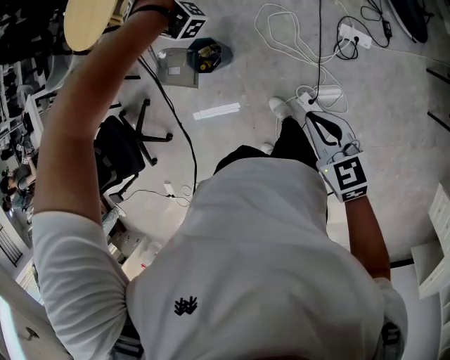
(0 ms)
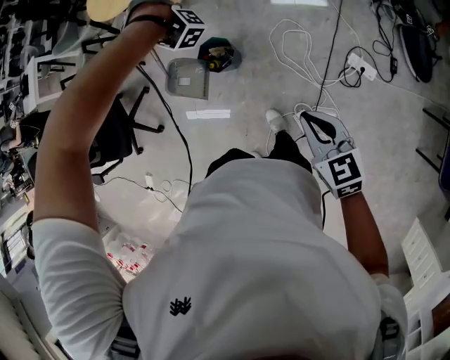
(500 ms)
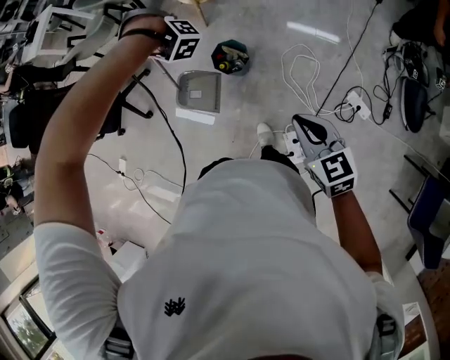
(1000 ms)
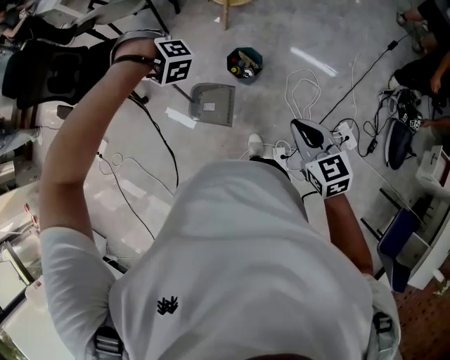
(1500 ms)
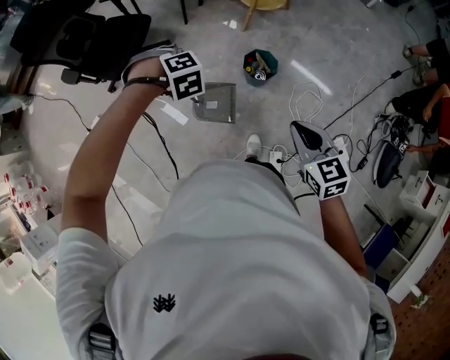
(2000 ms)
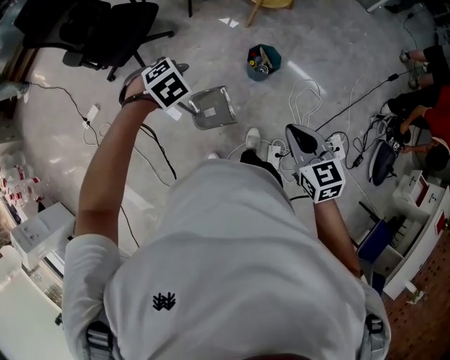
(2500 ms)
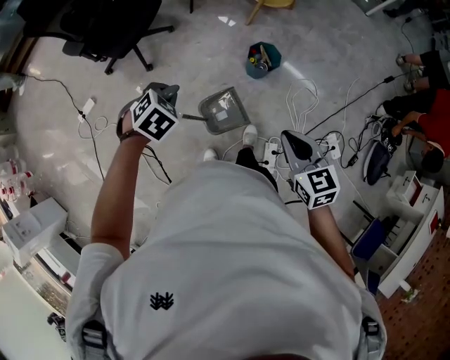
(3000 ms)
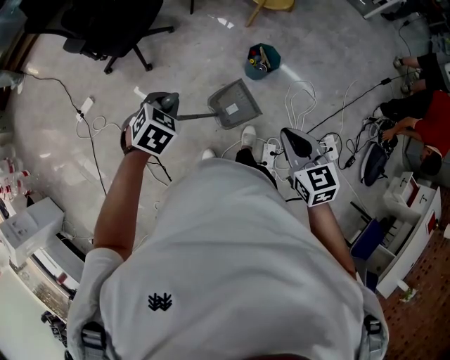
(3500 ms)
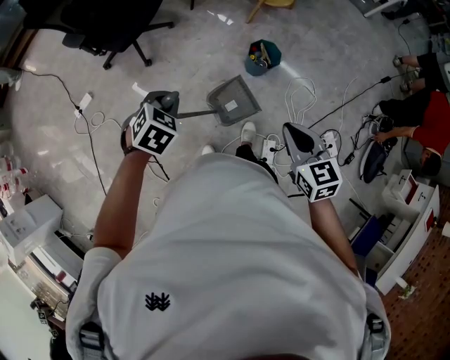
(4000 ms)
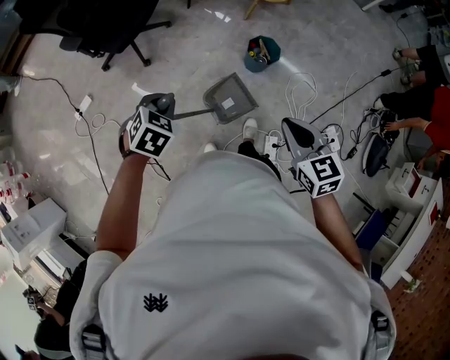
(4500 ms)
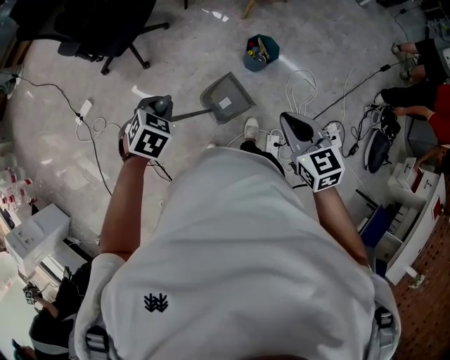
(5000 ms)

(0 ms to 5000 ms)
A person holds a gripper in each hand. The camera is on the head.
0 ms - 2500 ms: The right gripper ends up some 30 cm from where it was, and changes its angle by roughly 40 degrees.
2500 ms - 5000 ms: The right gripper ends up roughly 5 cm from where it was.

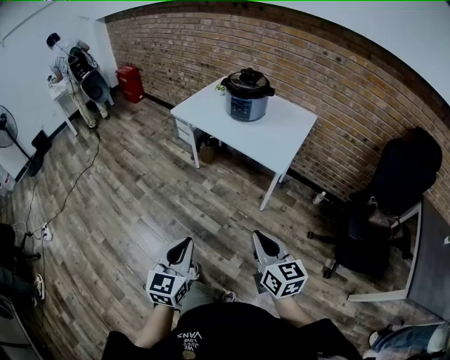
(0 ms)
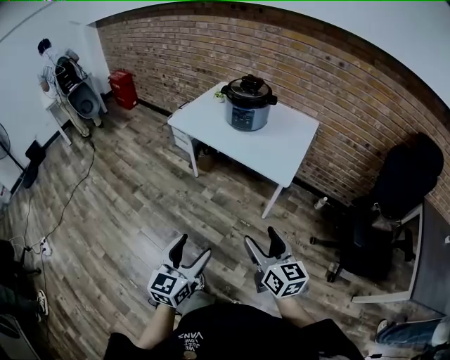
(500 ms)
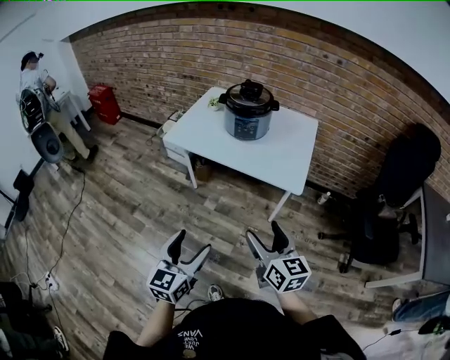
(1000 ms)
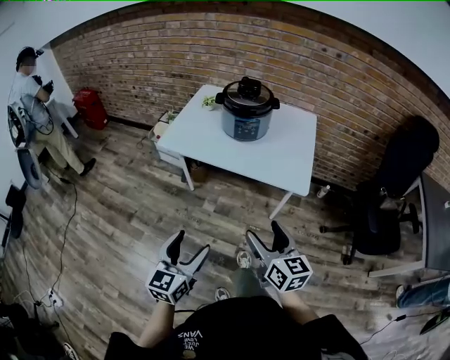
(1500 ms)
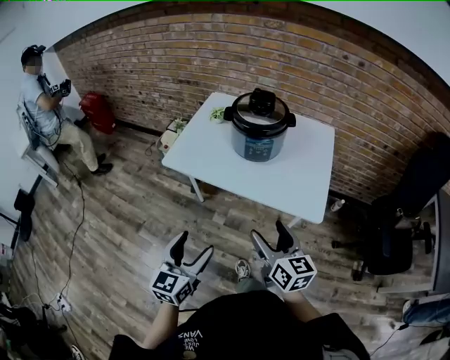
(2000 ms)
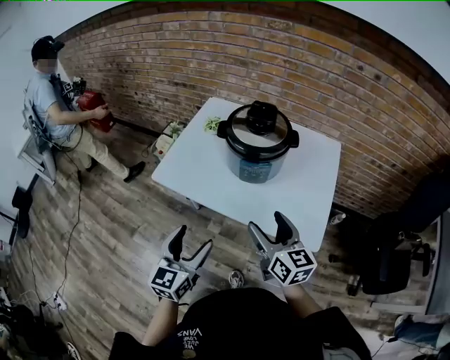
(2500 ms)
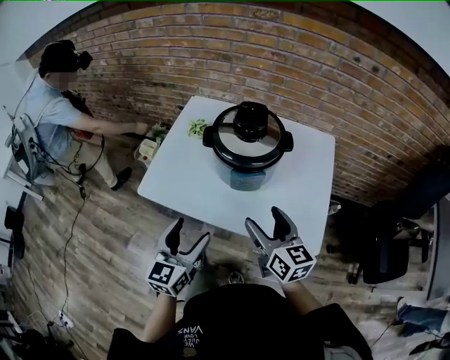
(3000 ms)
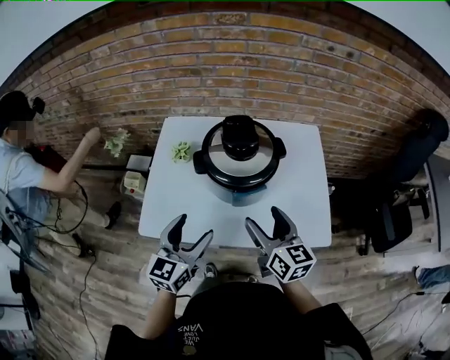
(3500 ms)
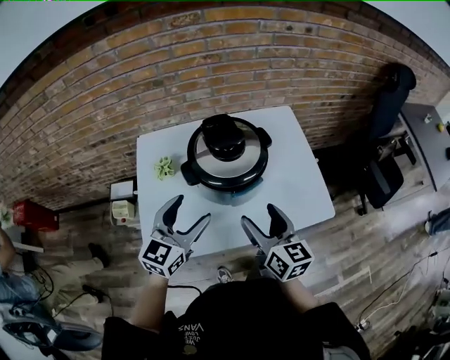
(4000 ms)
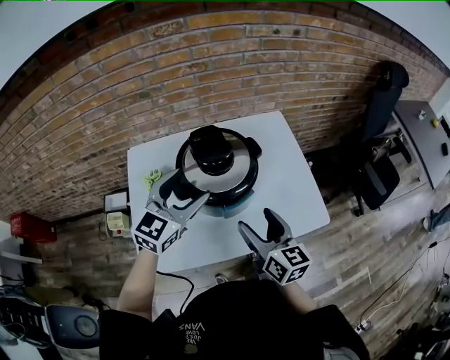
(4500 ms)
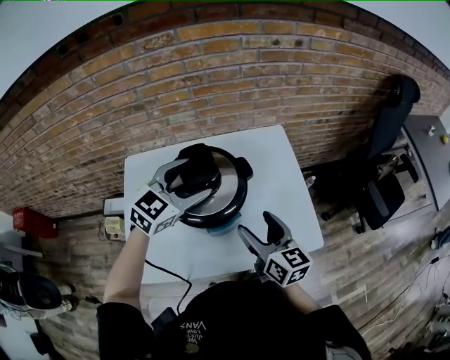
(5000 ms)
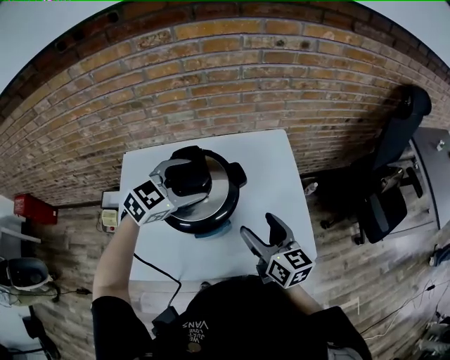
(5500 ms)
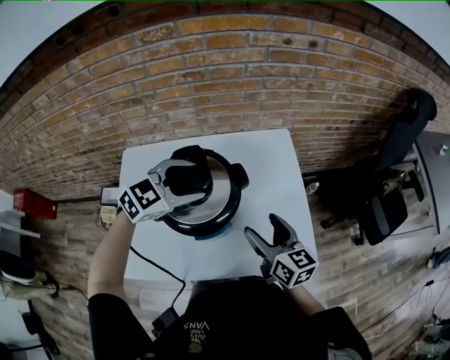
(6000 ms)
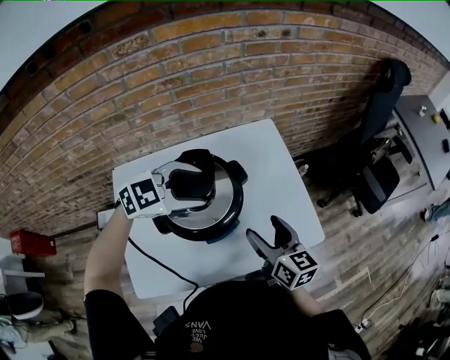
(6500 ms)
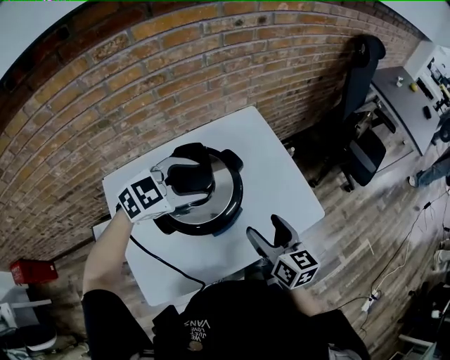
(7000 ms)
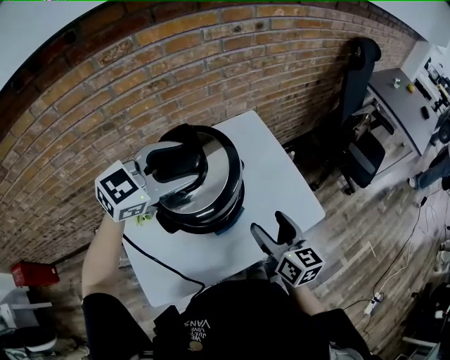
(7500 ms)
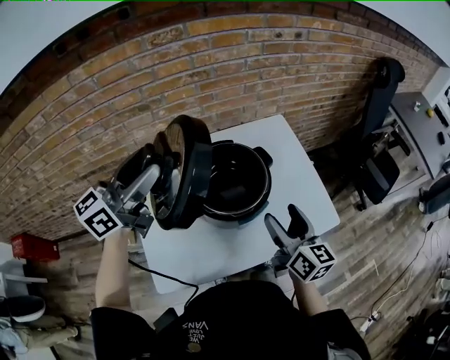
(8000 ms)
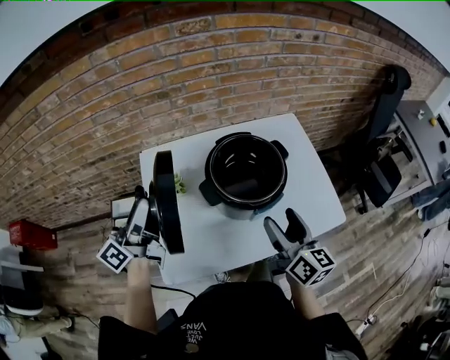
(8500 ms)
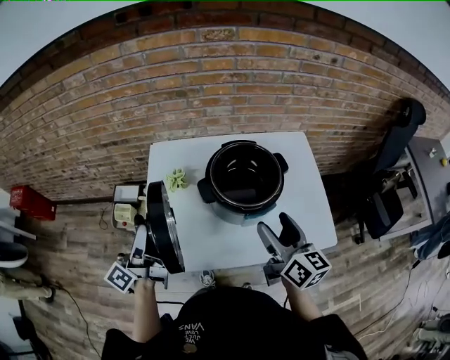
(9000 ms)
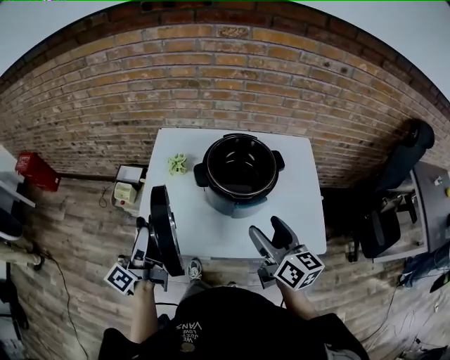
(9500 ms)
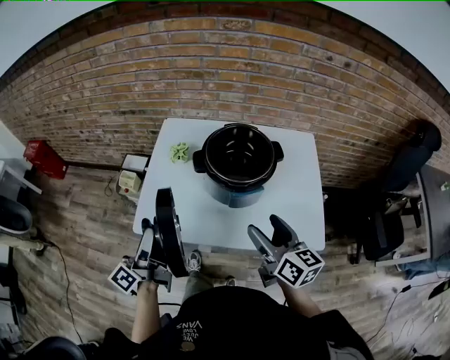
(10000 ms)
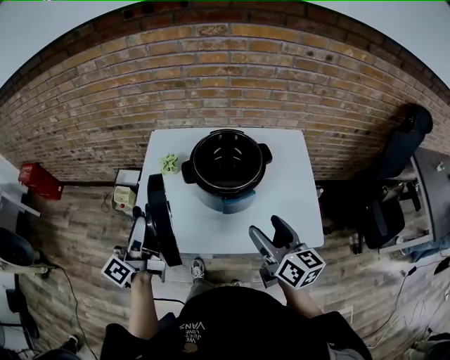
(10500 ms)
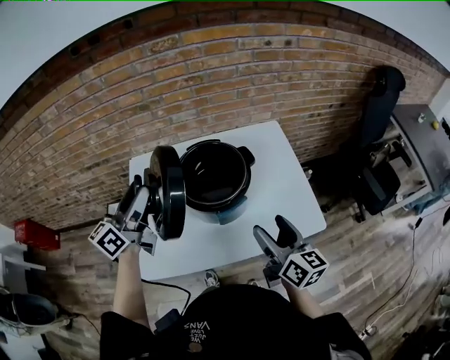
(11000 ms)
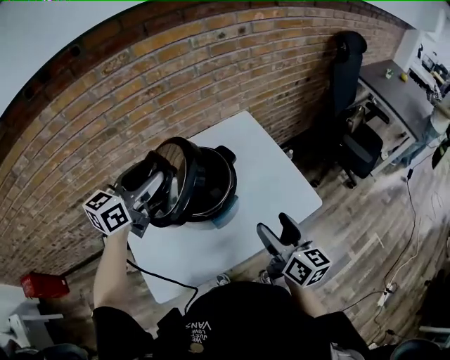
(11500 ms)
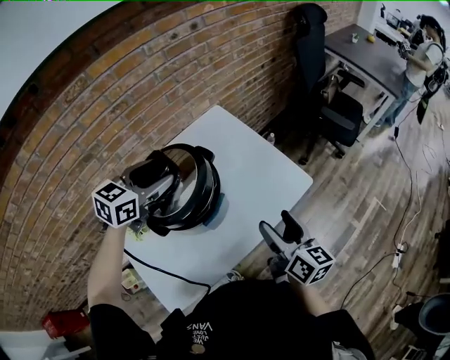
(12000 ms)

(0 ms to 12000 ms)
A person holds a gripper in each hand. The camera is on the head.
0 ms - 2000 ms: The two grippers go roughly 40 cm forward and to the left. The left gripper opens up. Meanwhile the right gripper opens.
2000 ms - 4000 ms: The right gripper changes place by some 25 cm, and changes its angle by about 30 degrees. Meanwhile the left gripper ends up approximately 40 cm from where it was, and rotates approximately 40 degrees.
4000 ms - 6000 ms: Both grippers travel together forward and to the right, roughly 20 cm. The left gripper turns by some 40 degrees.
6000 ms - 8000 ms: The right gripper travels backward and upward by roughly 10 cm, and swivels some 20 degrees, while the left gripper is displaced to the left, upward and backward by some 25 cm, and tilts its fingers approximately 40 degrees upward.
8000 ms - 10000 ms: The left gripper moves roughly 35 cm, and turns by some 60 degrees, while the right gripper moves about 5 cm, and turns by about 30 degrees.
10000 ms - 12000 ms: The left gripper moves about 40 cm, and points its fingers about 40 degrees further downward; the right gripper changes place by approximately 10 cm, and turns by approximately 50 degrees.

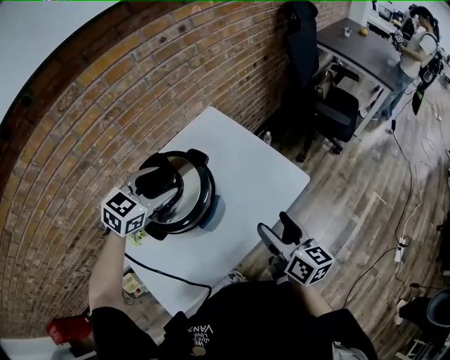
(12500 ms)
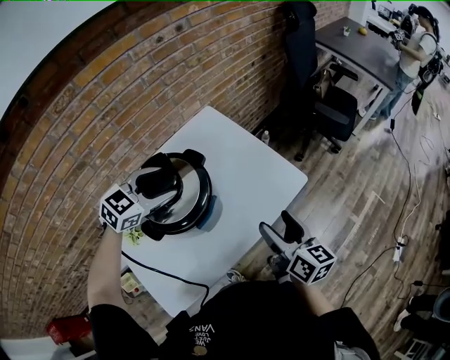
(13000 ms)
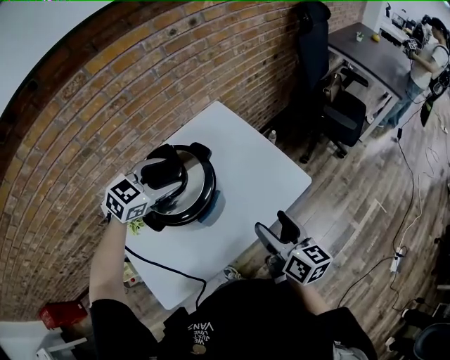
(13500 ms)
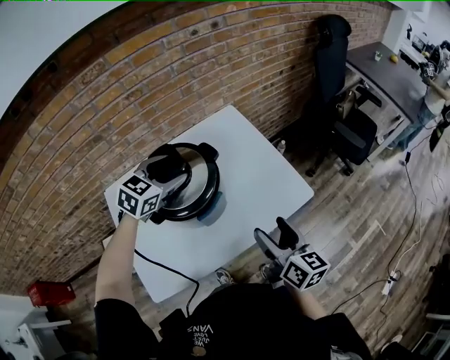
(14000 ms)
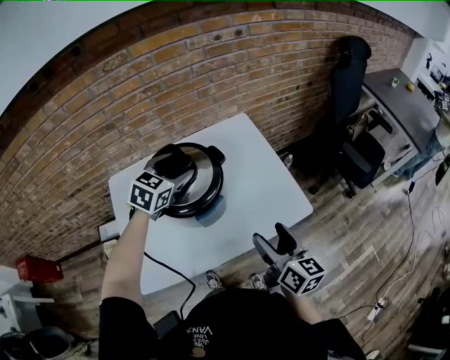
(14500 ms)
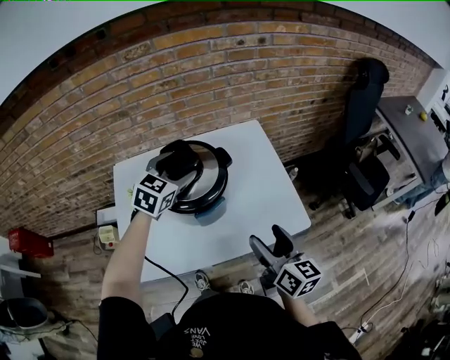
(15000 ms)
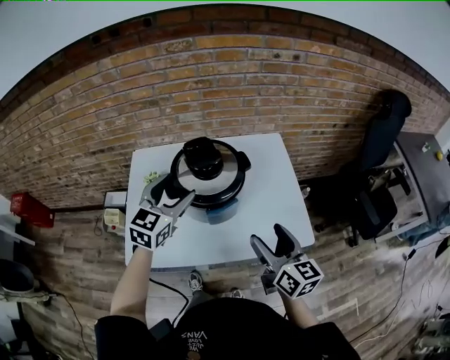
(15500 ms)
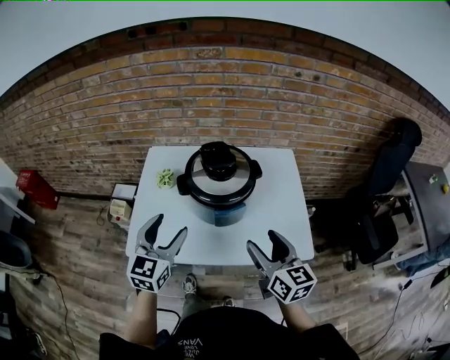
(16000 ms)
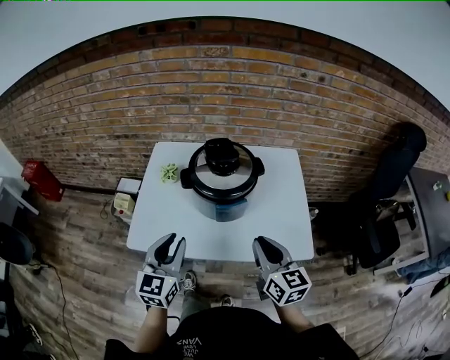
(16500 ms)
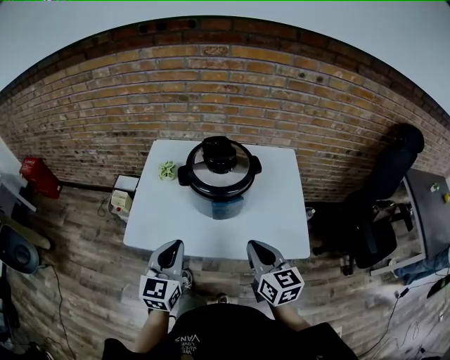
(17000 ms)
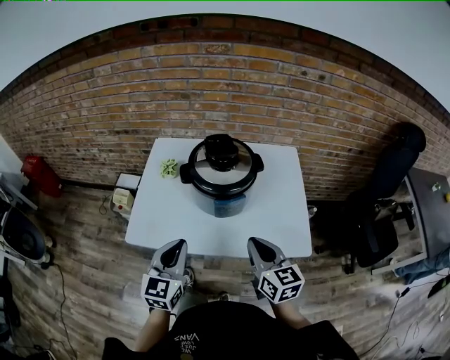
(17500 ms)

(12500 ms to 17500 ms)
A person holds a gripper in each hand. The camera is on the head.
12500 ms - 15000 ms: The right gripper swivels approximately 30 degrees. Meanwhile the left gripper swivels roughly 40 degrees.
15000 ms - 17500 ms: The left gripper changes place by about 30 cm, rotates roughly 40 degrees, and closes. The right gripper moves approximately 5 cm, changes its angle by about 30 degrees, and closes up.

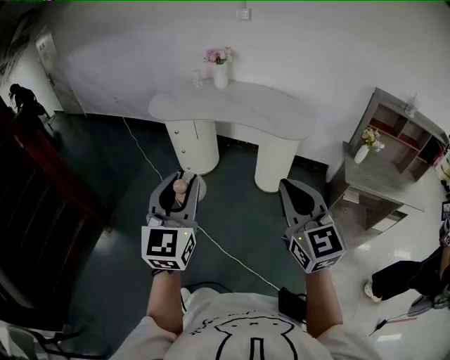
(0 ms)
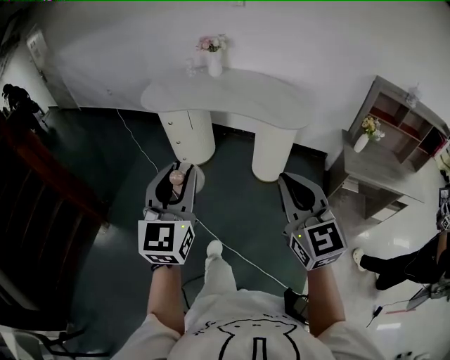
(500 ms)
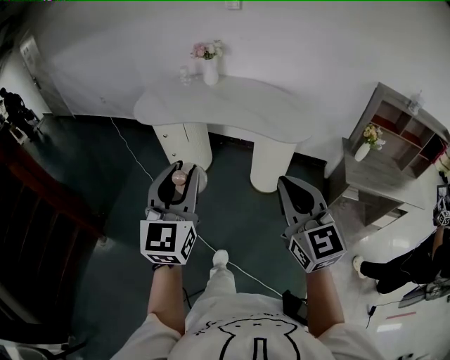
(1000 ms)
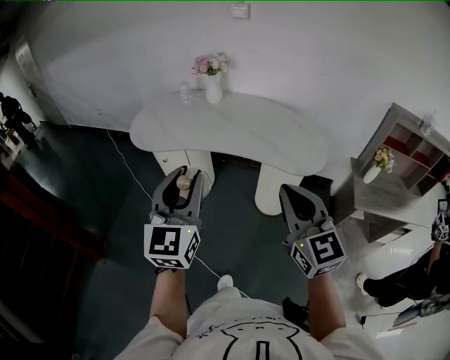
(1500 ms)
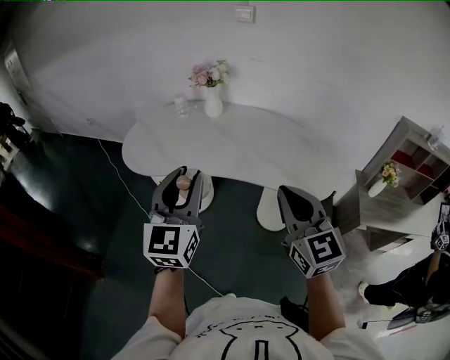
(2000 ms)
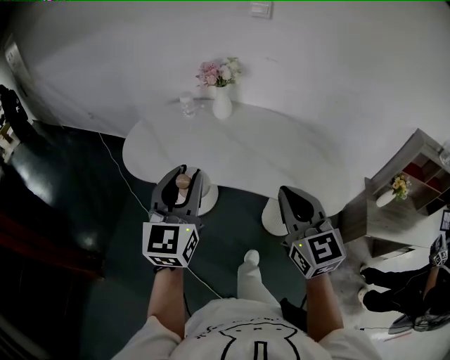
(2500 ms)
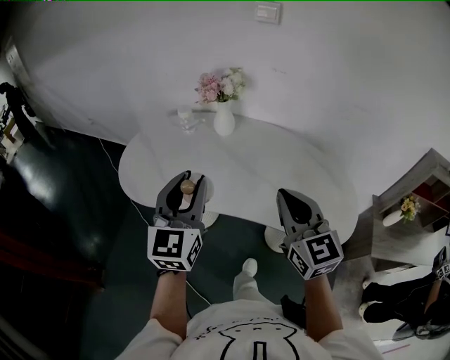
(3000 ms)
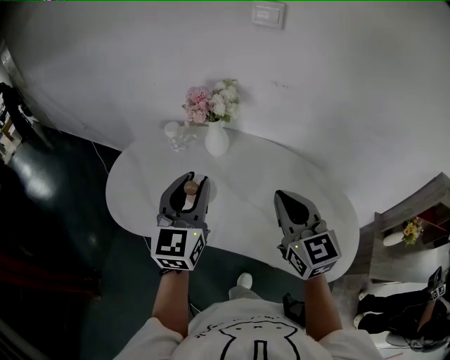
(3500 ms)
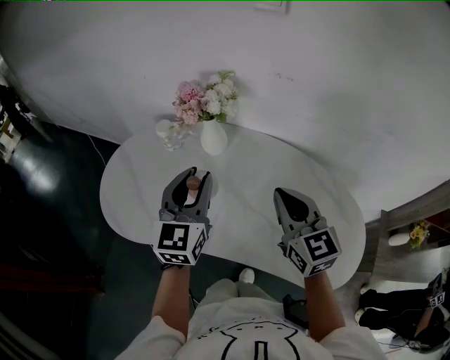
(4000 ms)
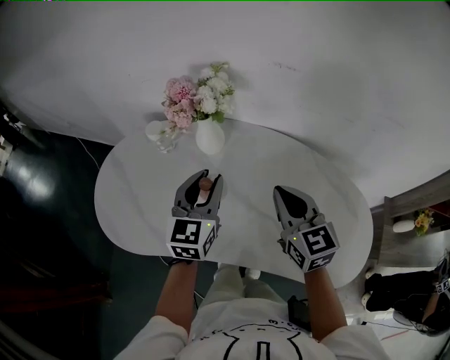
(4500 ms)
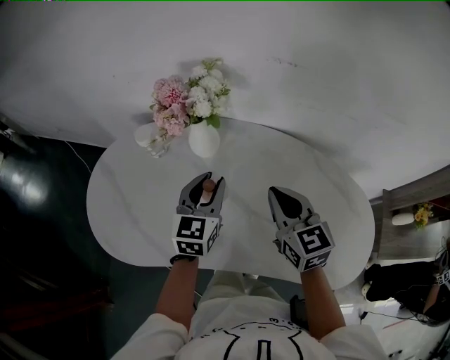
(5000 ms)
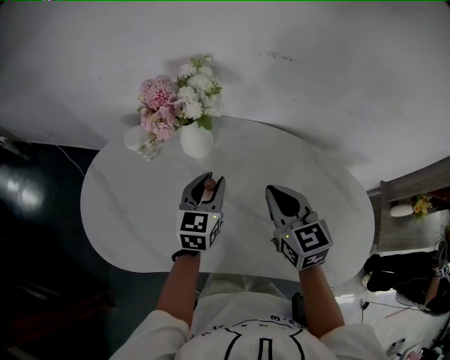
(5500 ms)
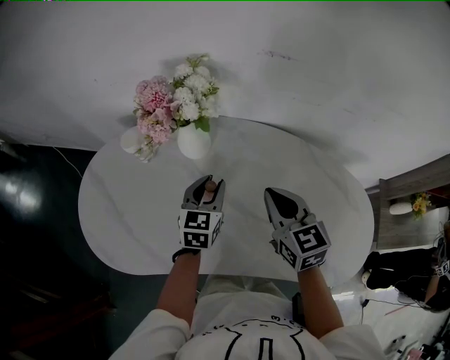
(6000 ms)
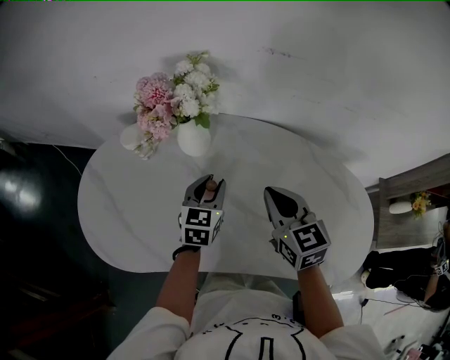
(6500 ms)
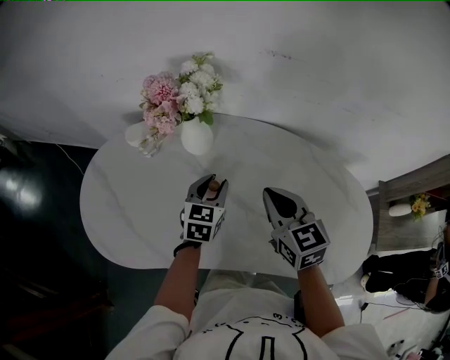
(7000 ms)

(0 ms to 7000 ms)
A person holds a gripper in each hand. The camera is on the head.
0 ms - 2000 ms: Both grippers are carried forward, some 50 cm.
2000 ms - 3500 ms: The grippers both shift forward by some 35 cm.
3500 ms - 5000 ms: The right gripper heads forward and downward, covering approximately 20 cm. Meanwhile the left gripper is displaced downward and forward by roughly 25 cm, and turns by some 20 degrees.
5000 ms - 7000 ms: The left gripper goes roughly 10 cm downward.
